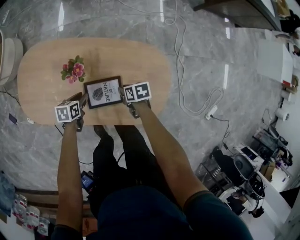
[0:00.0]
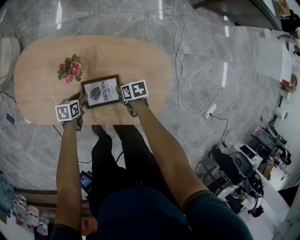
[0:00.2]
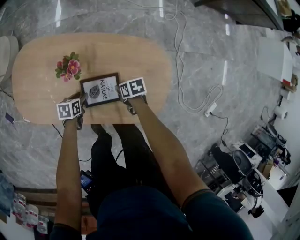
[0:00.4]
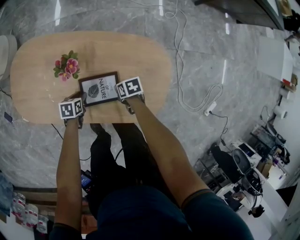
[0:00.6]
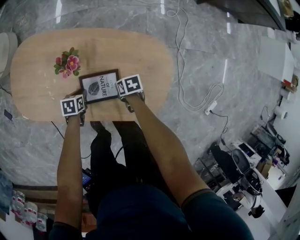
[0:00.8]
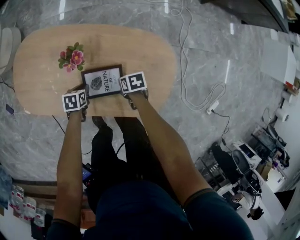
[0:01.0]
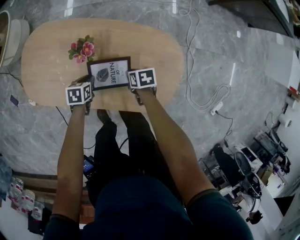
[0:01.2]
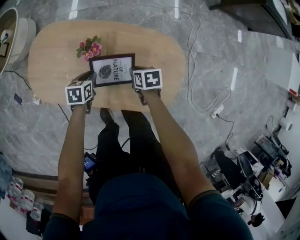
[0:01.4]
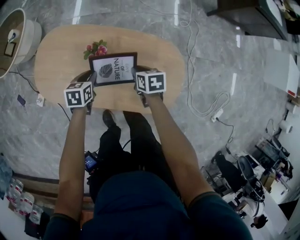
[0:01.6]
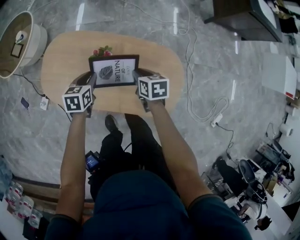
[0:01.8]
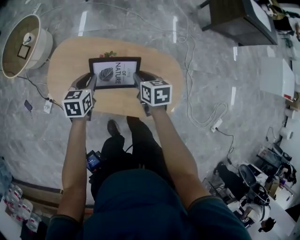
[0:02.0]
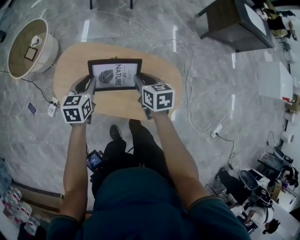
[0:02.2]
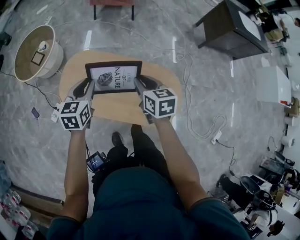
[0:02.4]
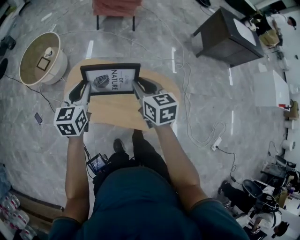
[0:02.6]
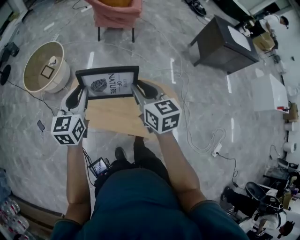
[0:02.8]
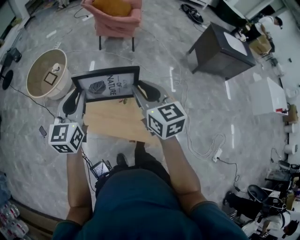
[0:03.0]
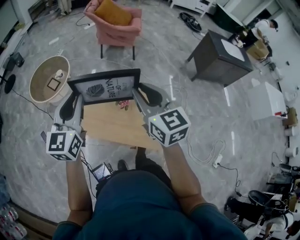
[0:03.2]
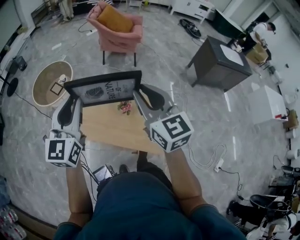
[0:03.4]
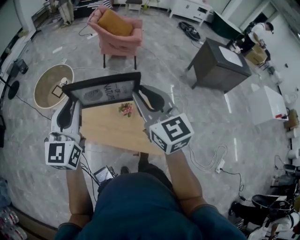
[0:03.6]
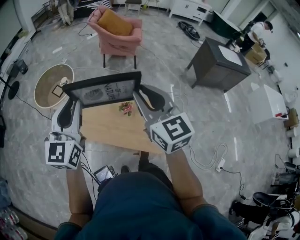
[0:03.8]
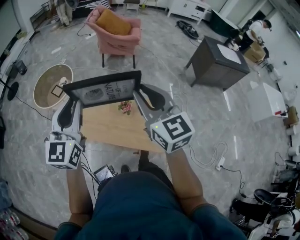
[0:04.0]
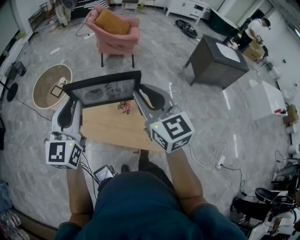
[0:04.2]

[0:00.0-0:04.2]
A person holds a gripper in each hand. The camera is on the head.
0:00.0 to 0:01.4: The left gripper ends up approximately 5 cm from where it was. The right gripper shifts approximately 5 cm upward.
0:01.4 to 0:02.8: Both grippers move upward, roughly 50 cm. The left gripper tilts its fingers some 40 degrees upward. Meanwhile the right gripper tilts its fingers about 40 degrees upward.
0:02.8 to 0:04.2: The two grippers go approximately 20 cm upward and backward. The left gripper swivels some 20 degrees, while the right gripper changes its angle by approximately 20 degrees.

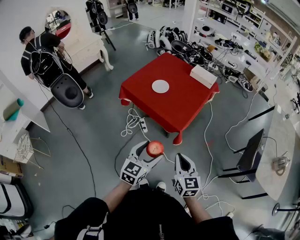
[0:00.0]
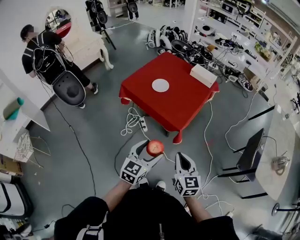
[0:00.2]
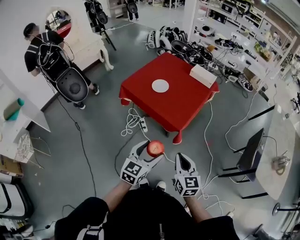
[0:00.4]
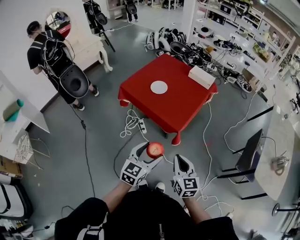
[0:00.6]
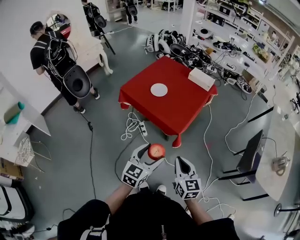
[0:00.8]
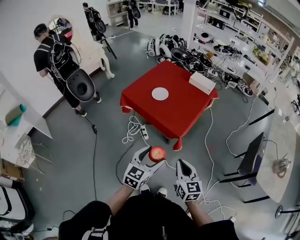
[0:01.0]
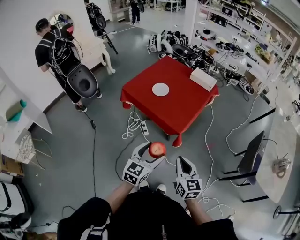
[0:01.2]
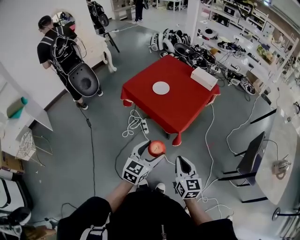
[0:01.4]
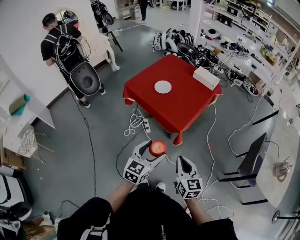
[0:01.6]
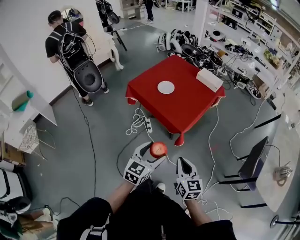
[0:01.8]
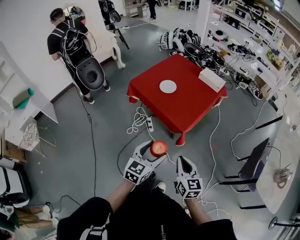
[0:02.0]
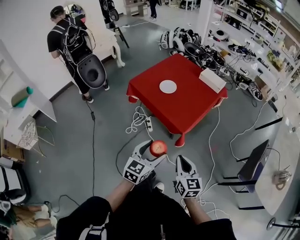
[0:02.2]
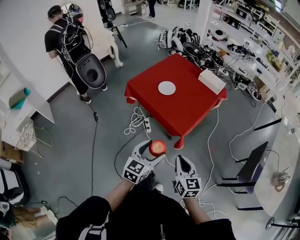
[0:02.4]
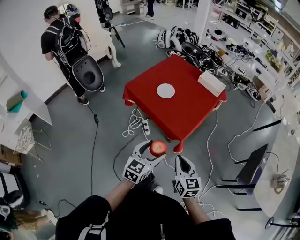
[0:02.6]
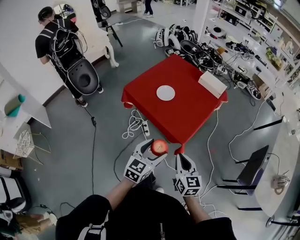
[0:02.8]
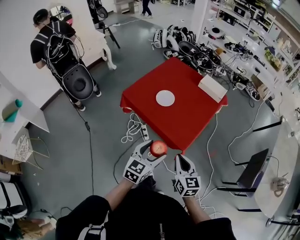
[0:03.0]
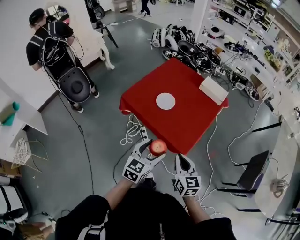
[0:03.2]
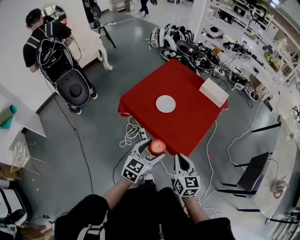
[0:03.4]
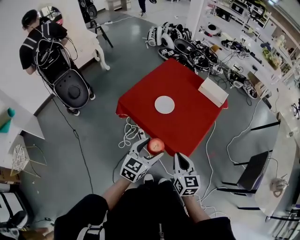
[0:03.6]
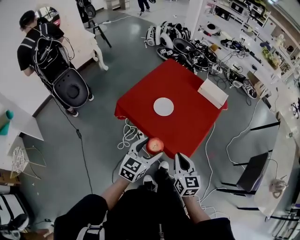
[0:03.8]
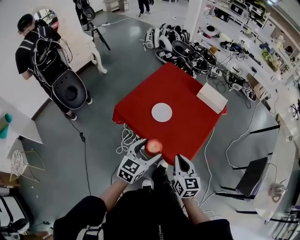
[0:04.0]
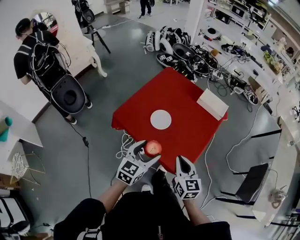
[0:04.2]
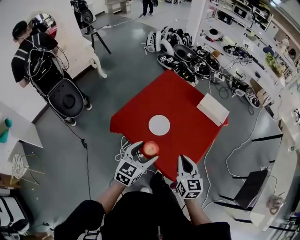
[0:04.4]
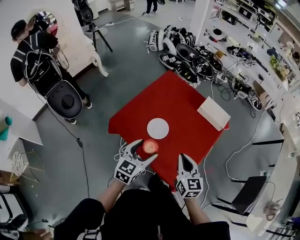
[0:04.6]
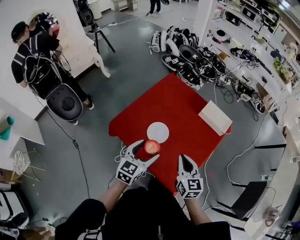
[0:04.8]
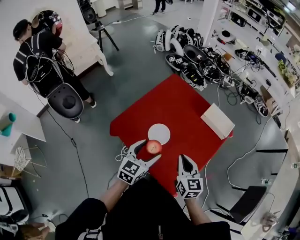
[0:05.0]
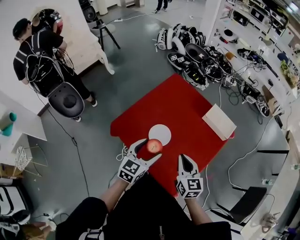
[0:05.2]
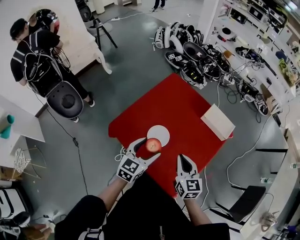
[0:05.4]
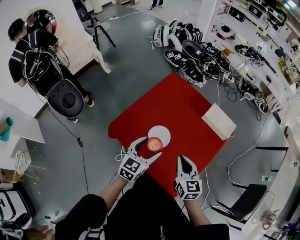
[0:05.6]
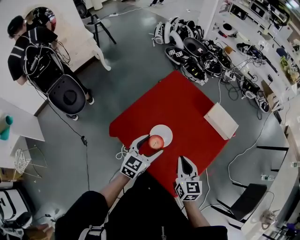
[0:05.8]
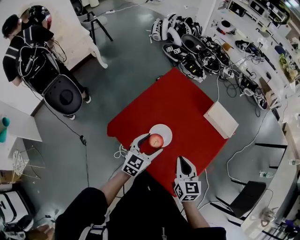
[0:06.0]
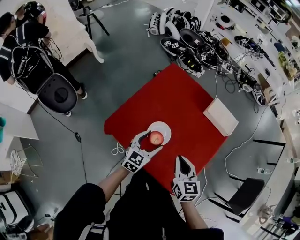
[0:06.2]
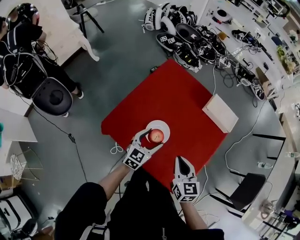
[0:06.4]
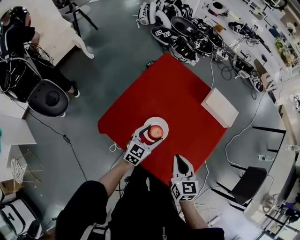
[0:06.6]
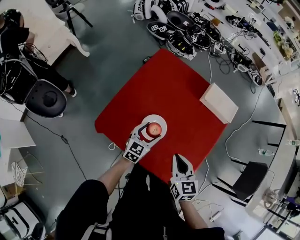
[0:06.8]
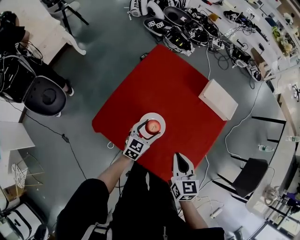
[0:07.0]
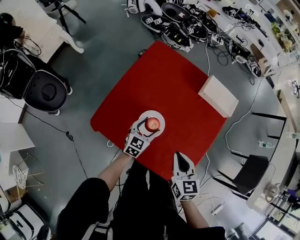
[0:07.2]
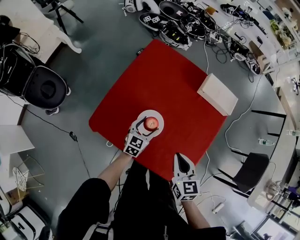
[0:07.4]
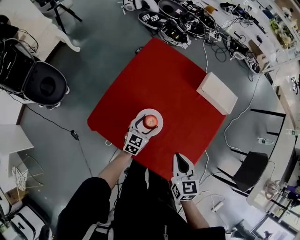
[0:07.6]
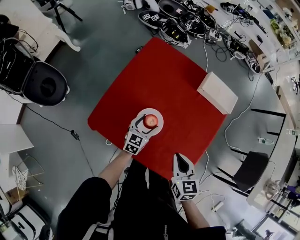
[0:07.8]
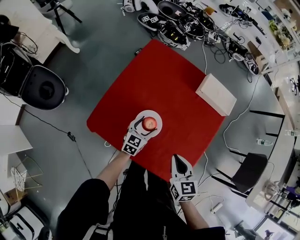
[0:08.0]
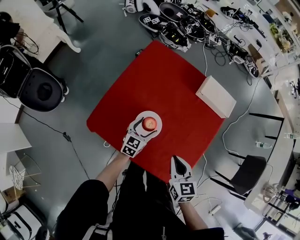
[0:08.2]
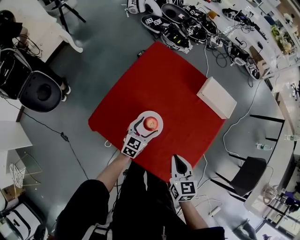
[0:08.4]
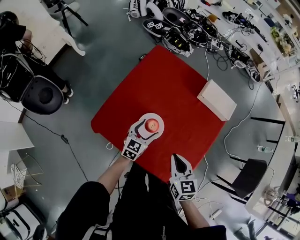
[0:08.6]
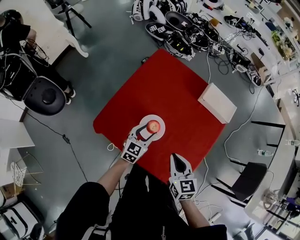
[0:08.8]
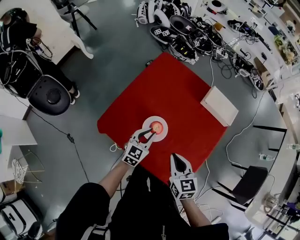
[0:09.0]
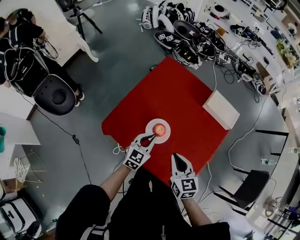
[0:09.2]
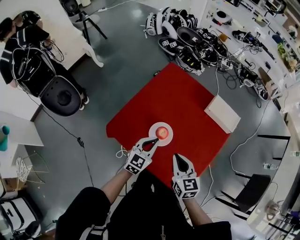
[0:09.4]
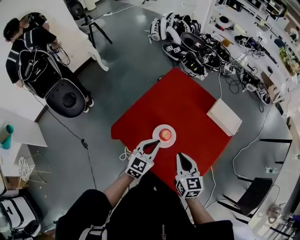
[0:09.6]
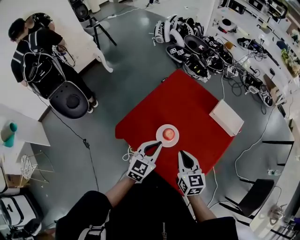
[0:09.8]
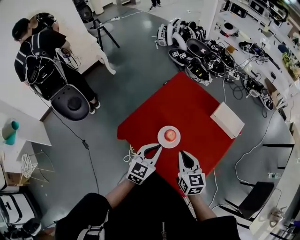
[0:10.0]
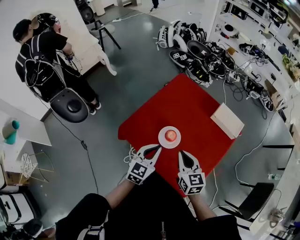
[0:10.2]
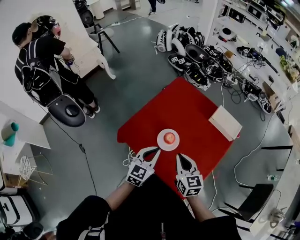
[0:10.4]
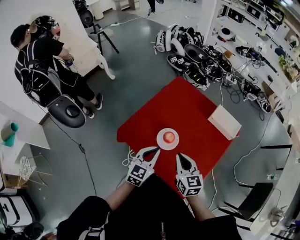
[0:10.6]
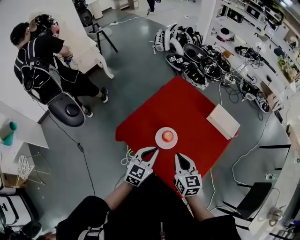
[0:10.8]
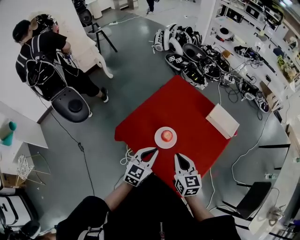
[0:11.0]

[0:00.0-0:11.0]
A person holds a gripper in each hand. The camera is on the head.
0:00.0 to 0:01.6: There are only small adjustments of the grippers.
0:01.6 to 0:03.2: Both grippers move forward and to the left, approximately 20 cm.
0:03.2 to 0:04.8: The two grippers go about 25 cm forward.
0:04.8 to 0:06.2: The left gripper heads forward and downward, covering about 15 cm; the right gripper moves forward and to the left, some 10 cm.
0:06.2 to 0:07.8: The left gripper is displaced downward by some 15 cm. The right gripper goes some 5 cm downward.
0:07.8 to 0:09.4: The left gripper heads upward and backward, covering some 15 cm, and closes its fingers, while the right gripper moves about 5 cm.
0:09.4 to 0:11.0: The left gripper shifts approximately 10 cm backward and upward.

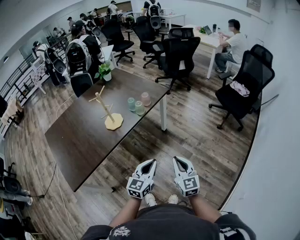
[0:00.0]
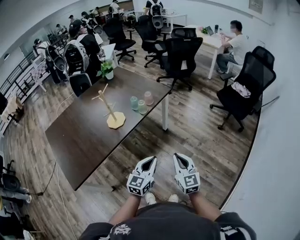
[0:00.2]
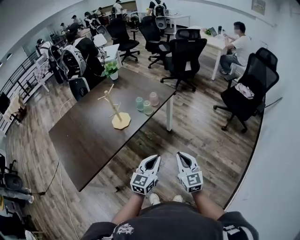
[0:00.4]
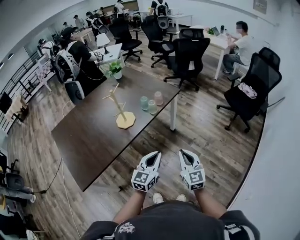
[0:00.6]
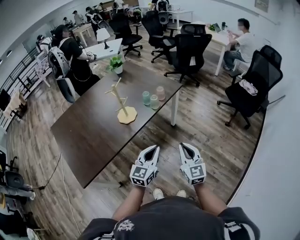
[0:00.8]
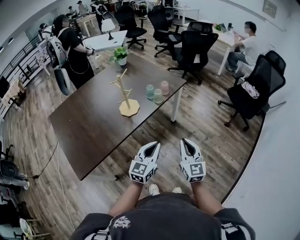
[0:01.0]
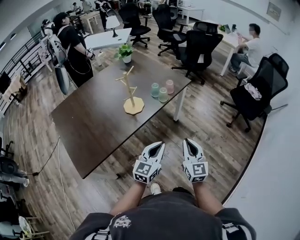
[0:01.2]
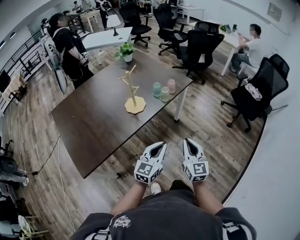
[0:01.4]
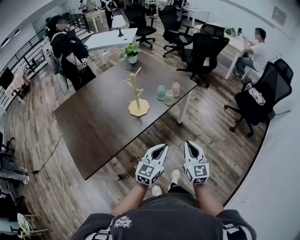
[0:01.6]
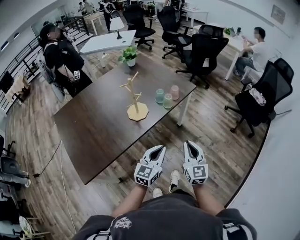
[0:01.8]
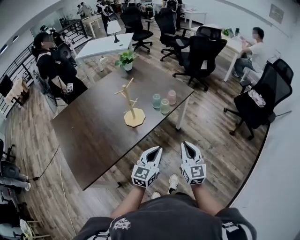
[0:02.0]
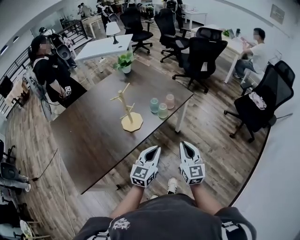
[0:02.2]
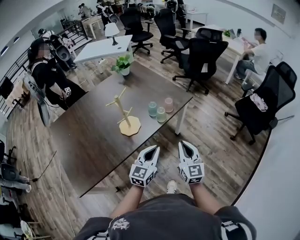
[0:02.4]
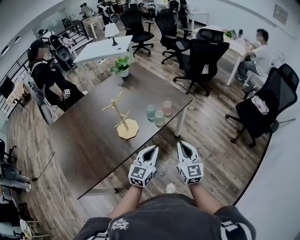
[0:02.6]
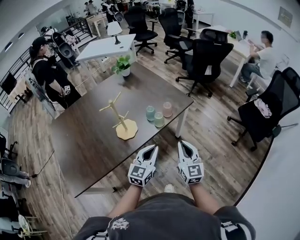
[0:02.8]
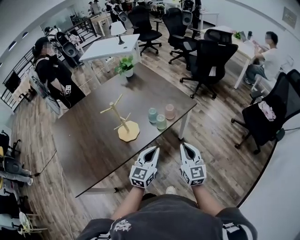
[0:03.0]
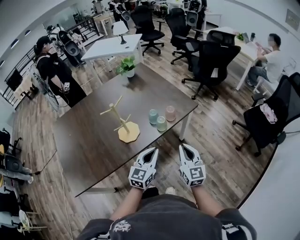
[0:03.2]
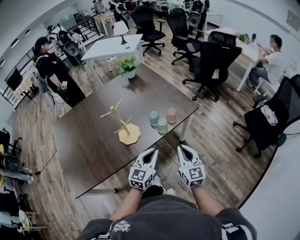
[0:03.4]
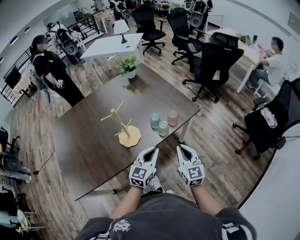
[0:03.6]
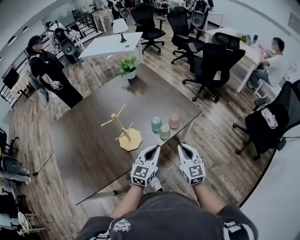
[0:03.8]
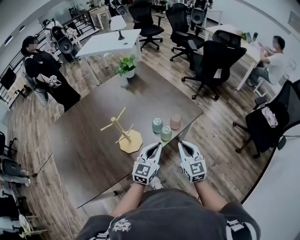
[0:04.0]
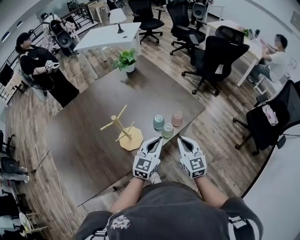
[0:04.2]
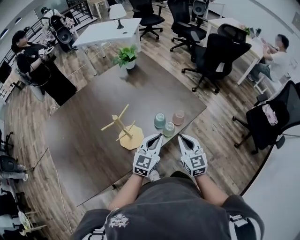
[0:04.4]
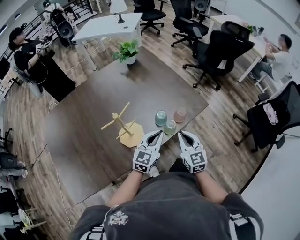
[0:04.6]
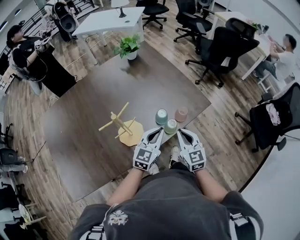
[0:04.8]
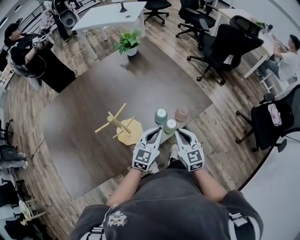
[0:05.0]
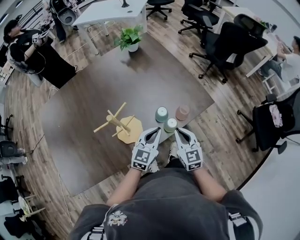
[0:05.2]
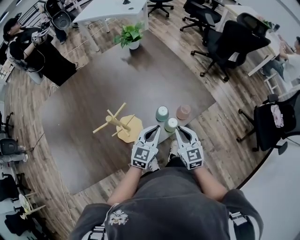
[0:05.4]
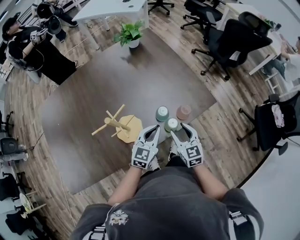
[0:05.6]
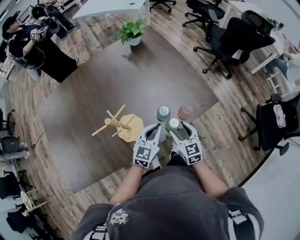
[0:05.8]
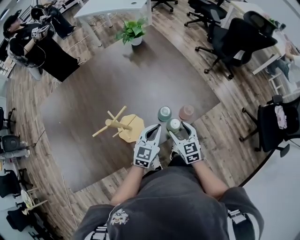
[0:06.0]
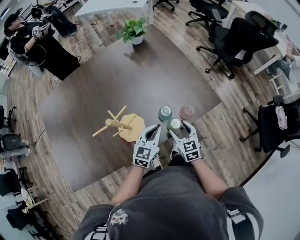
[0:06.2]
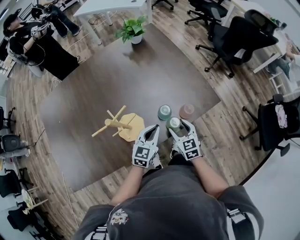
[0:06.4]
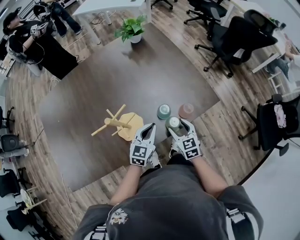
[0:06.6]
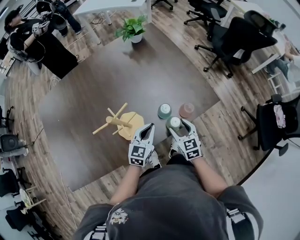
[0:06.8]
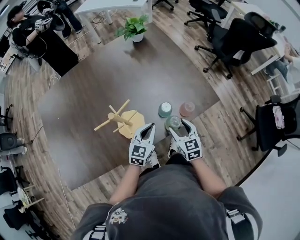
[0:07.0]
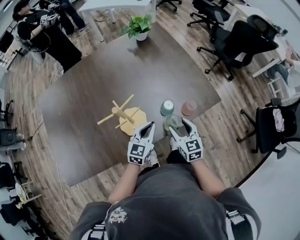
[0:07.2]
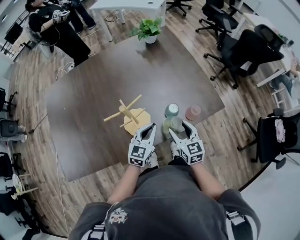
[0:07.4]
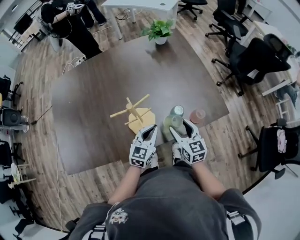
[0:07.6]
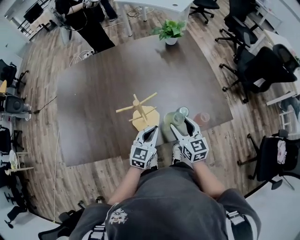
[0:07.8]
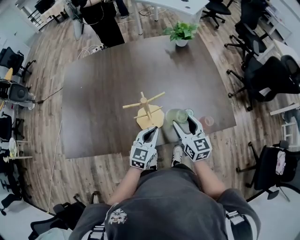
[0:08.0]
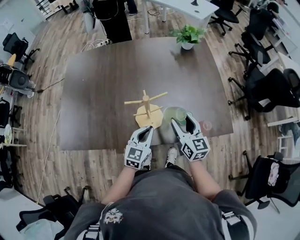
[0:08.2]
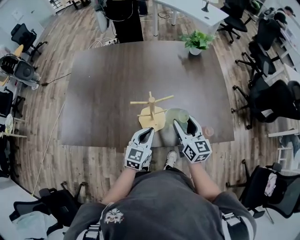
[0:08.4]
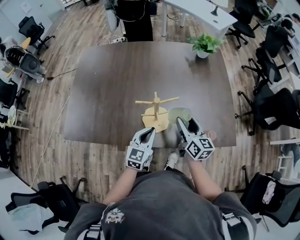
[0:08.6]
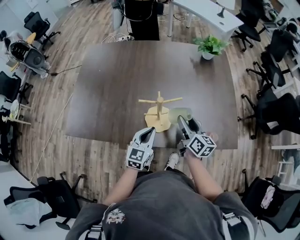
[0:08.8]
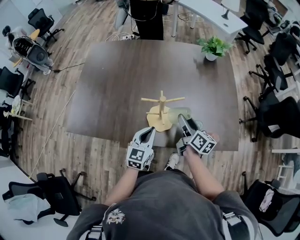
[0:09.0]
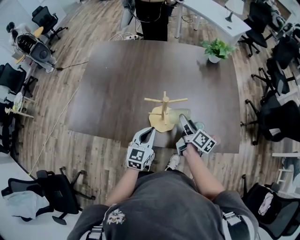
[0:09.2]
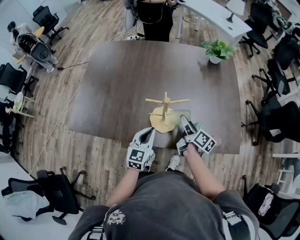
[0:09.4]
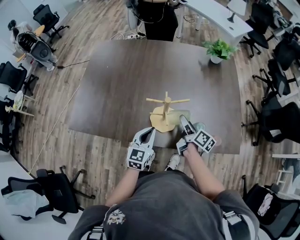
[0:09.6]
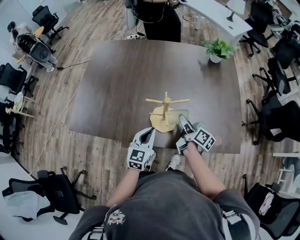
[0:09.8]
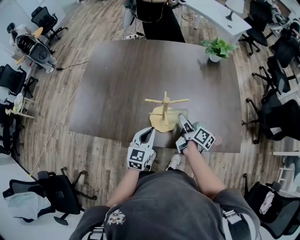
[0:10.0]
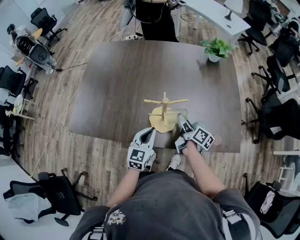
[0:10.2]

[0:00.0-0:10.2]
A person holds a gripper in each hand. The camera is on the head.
0:00.0 to 0:01.4: The two grippers go roughly 15 cm to the left.
0:01.4 to 0:03.0: The grippers both shift forward by about 25 cm.
0:03.0 to 0:04.4: The left gripper travels forward by about 15 cm; the right gripper goes about 15 cm forward and to the left.
0:04.4 to 0:05.8: The two grippers go approximately 10 cm downward and forward. The right gripper opens.
0:05.8 to 0:07.2: The left gripper moves to the left, some 5 cm.
0:07.2 to 0:08.8: The right gripper moves about 15 cm, and changes its angle by some 40 degrees. Meanwhile the left gripper ends up roughly 15 cm from where it was, and swivels approximately 30 degrees.
0:08.8 to 0:10.2: The right gripper goes about 5 cm downward, and turns by about 30 degrees.
